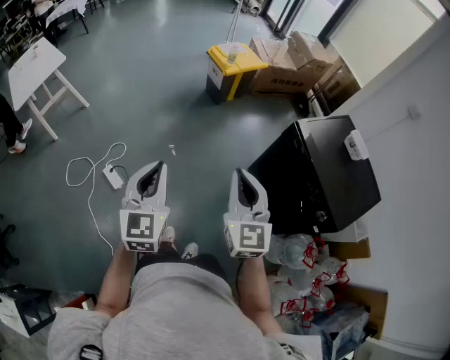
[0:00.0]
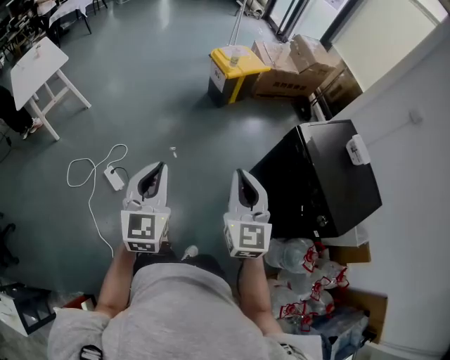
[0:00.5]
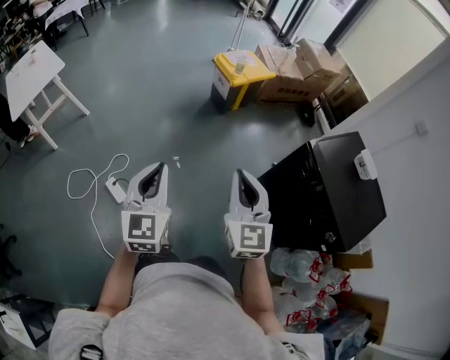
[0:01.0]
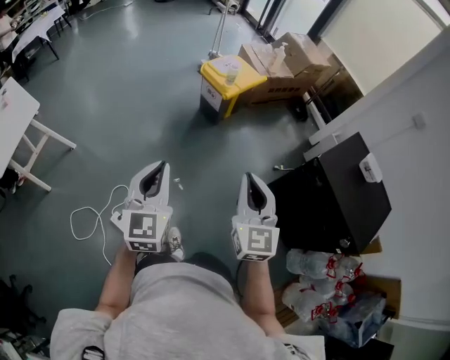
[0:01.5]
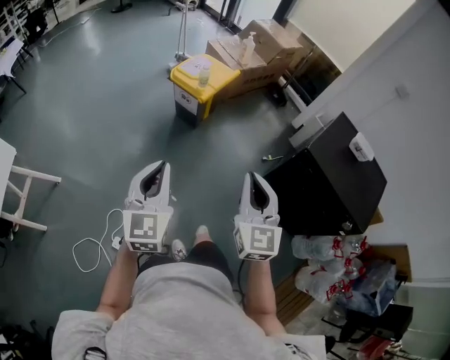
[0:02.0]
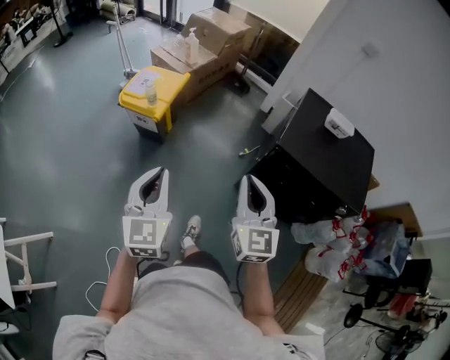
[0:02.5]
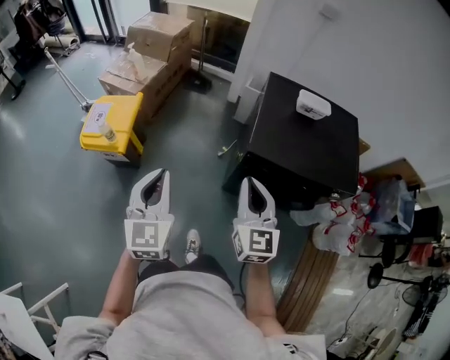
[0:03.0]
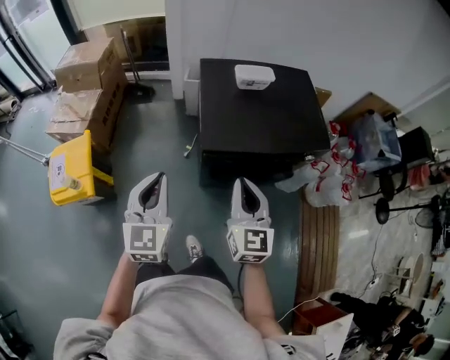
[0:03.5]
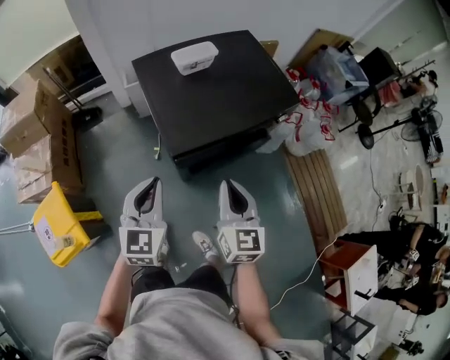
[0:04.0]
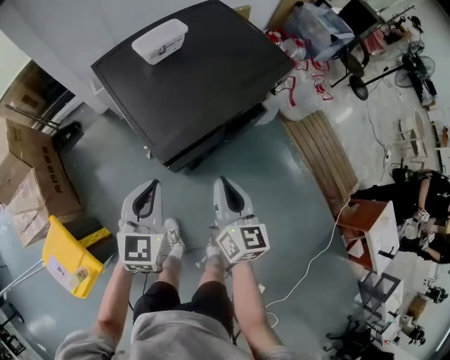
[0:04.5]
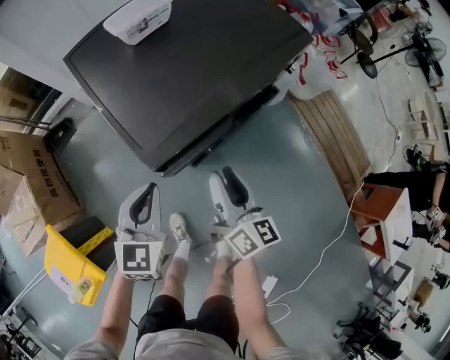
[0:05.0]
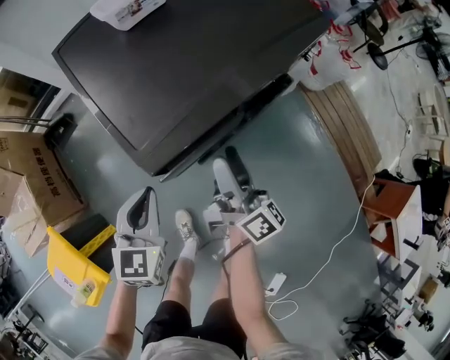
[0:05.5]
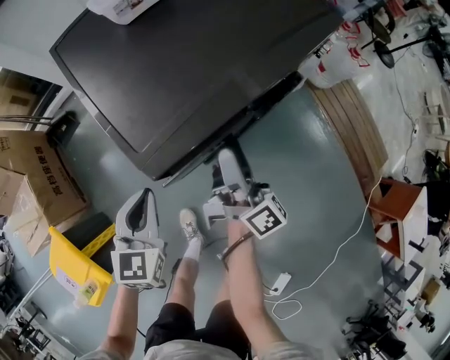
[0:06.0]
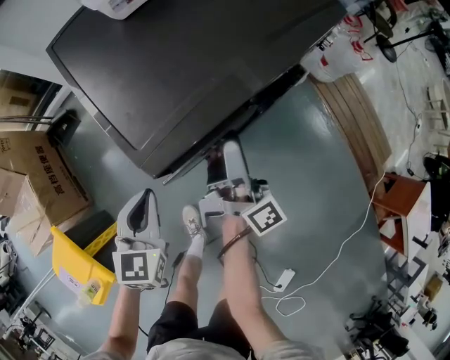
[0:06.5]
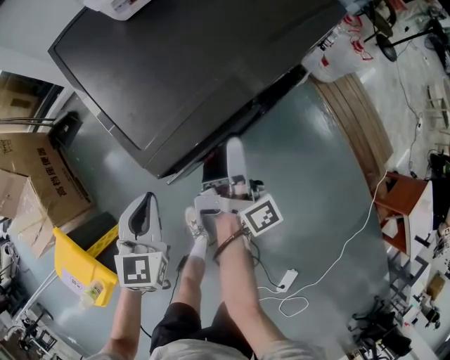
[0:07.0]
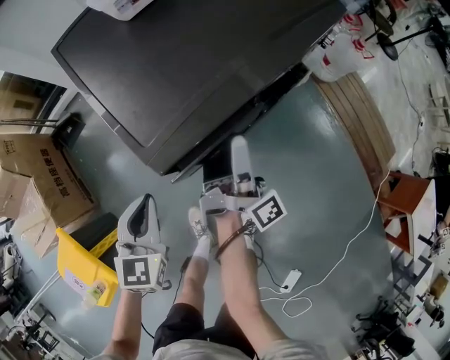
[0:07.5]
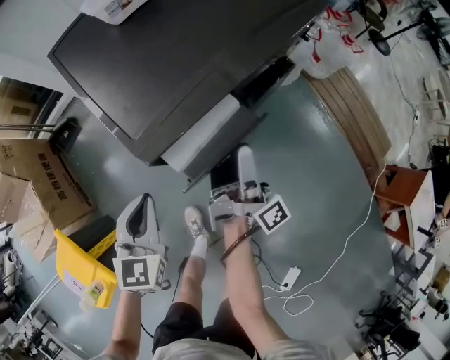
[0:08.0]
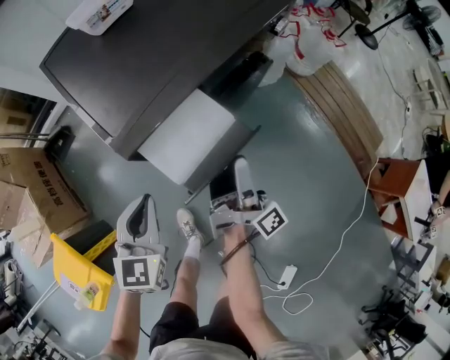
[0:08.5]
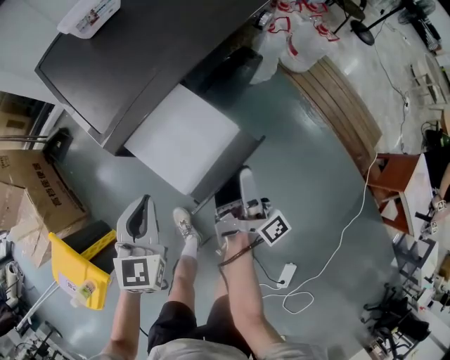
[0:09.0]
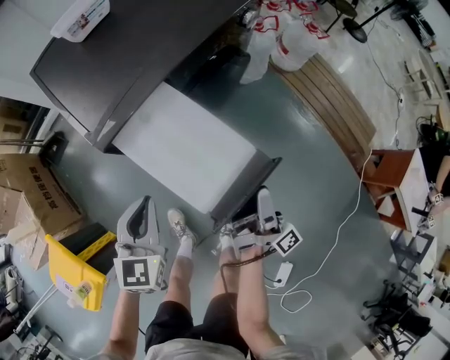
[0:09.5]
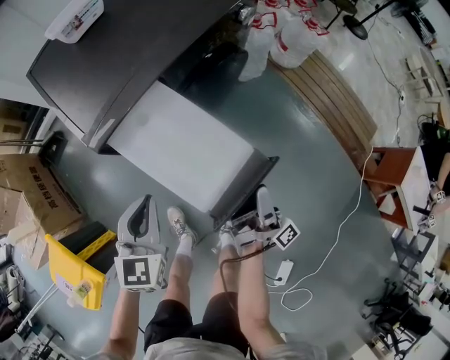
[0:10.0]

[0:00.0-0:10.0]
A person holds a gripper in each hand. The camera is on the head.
0:00.0 to 0:02.0: The right gripper goes roughly 30 cm forward and to the left, and turns by roughly 30 degrees, while the left gripper heads forward, covering some 40 cm, and turns by roughly 20 degrees.
0:02.0 to 0:04.0: The left gripper shifts by roughly 60 cm, and rotates approximately 80 degrees, while the right gripper ends up about 40 cm from where it was, and swivels approximately 70 degrees.
0:04.0 to 0:06.0: The left gripper moves downward, some 25 cm. The right gripper goes roughly 25 cm downward and forward, rolls clockwise, seen from behind, by about 60 degrees, and opens.
0:06.0 to 0:08.0: The right gripper turns by roughly 20 degrees.
0:08.0 to 0:10.0: The left gripper is displaced to the right by some 15 cm, while the right gripper travels to the right and backward by some 20 cm.

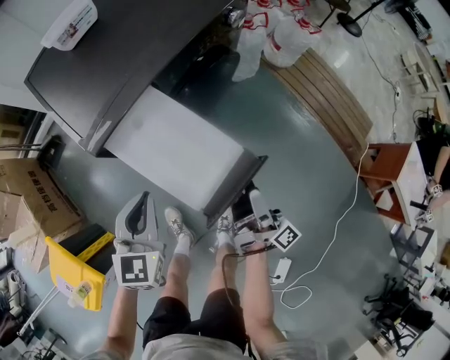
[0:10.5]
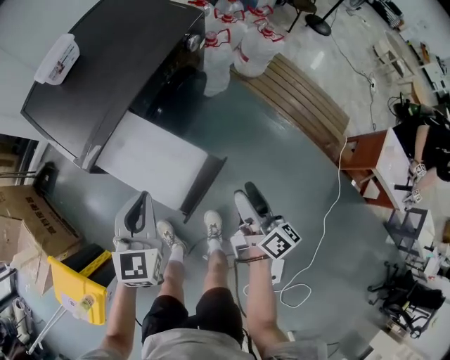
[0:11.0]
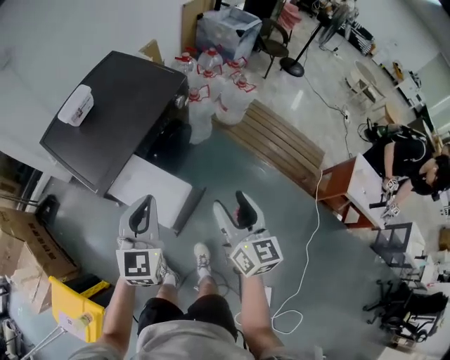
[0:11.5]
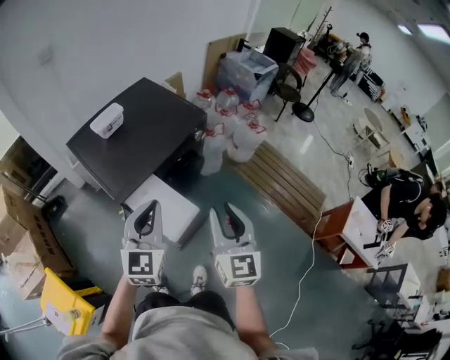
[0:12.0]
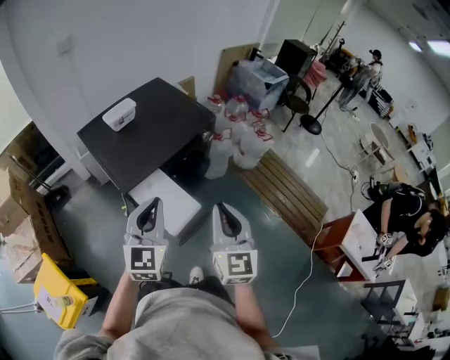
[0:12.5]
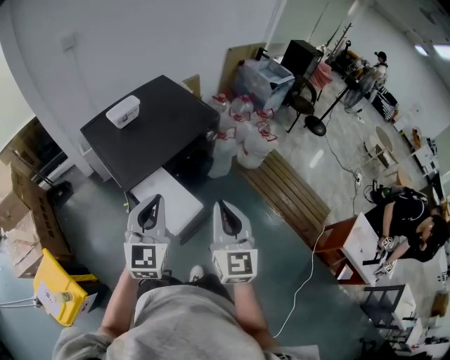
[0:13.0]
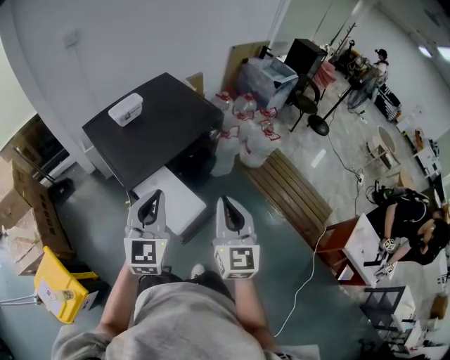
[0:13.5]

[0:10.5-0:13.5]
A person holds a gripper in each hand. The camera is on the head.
0:10.5 to 0:12.0: Both grippers travel together upward, some 30 cm. The right gripper twists roughly 80 degrees counterclockwise, seen from behind, and closes up. Meanwhile the left gripper swivels some 20 degrees.
0:12.0 to 0:13.5: The right gripper closes its fingers.

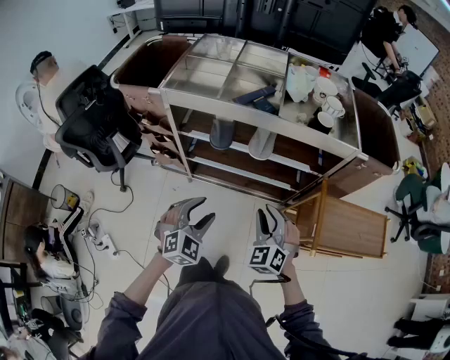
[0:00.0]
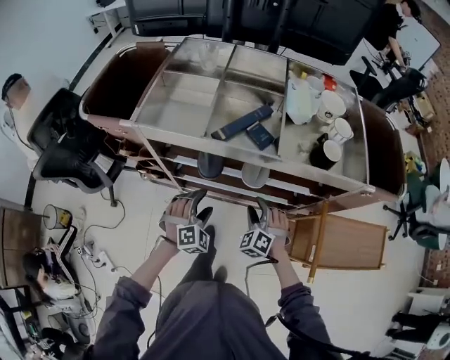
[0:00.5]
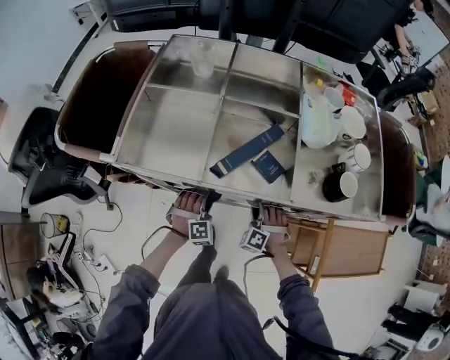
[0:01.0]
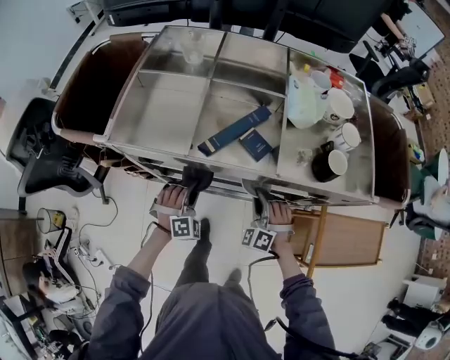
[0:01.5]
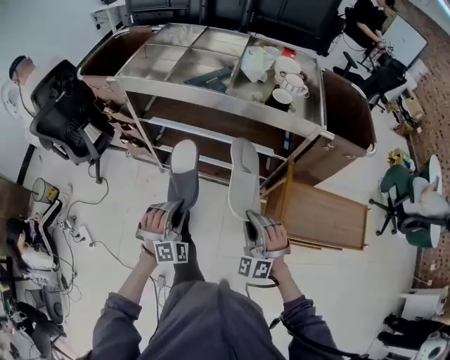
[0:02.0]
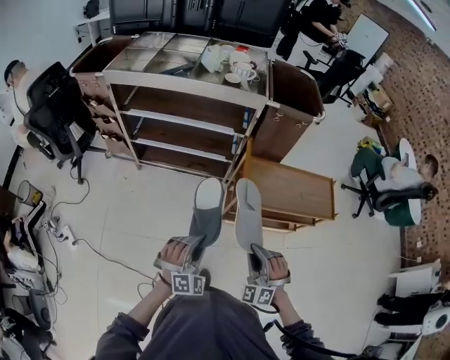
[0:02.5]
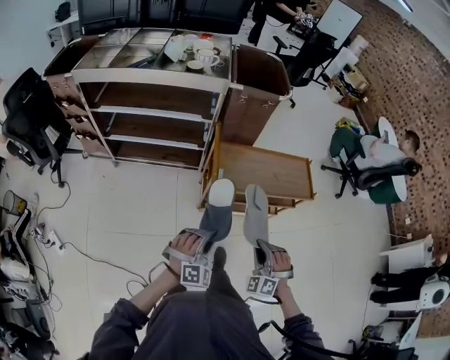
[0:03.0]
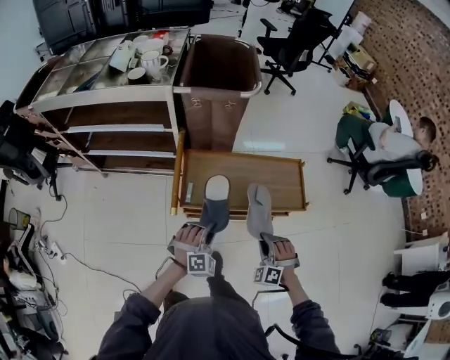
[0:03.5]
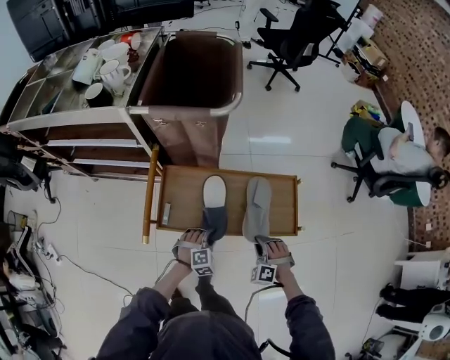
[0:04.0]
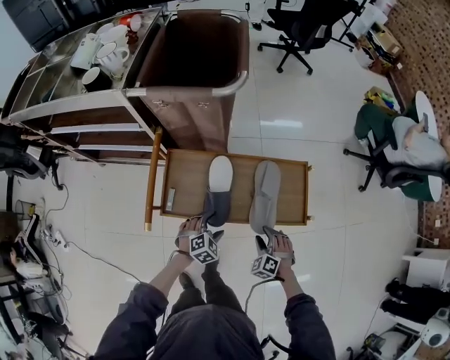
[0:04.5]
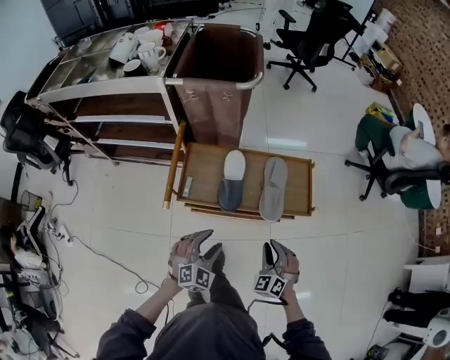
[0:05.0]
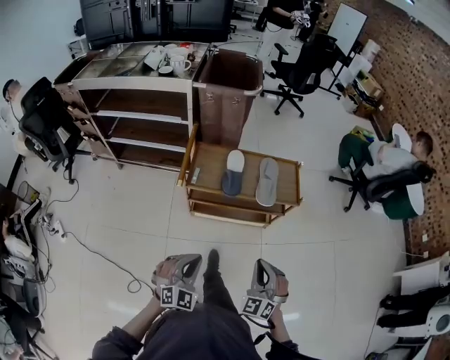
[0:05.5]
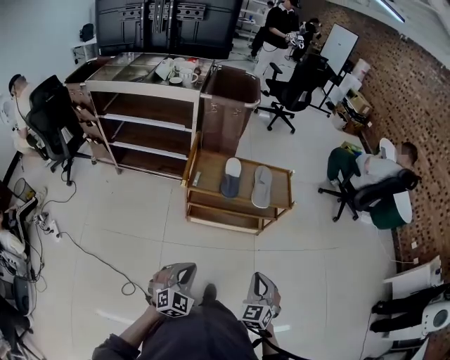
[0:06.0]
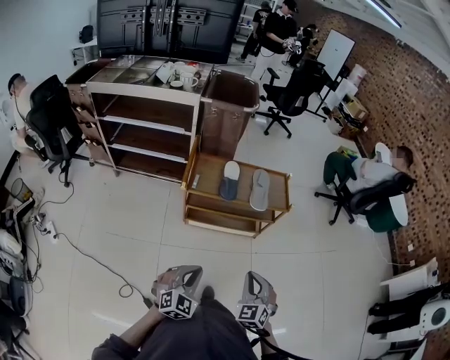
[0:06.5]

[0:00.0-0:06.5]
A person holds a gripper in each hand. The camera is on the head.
0:00.0 to 0:02.0: The left gripper shifts roughly 10 cm to the right and downward, moves roughly 30 cm forward and comes back, rotates some 30 degrees, and closes its fingers, while the right gripper is displaced to the right by about 15 cm, goes forward and returns, about 30 cm each way, rotates approximately 30 degrees, and opens, then closes once more.
0:02.0 to 0:04.5: The two grippers travel together, approximately 60 cm. The left gripper rotates about 50 degrees, and opens. The right gripper angles its fingers downward, by some 40 degrees, and opens.
0:04.5 to 0:06.5: Both grippers are carried backward, about 40 cm. The grippers both shift upward by roughly 25 cm. The left gripper turns by about 30 degrees, and closes; the right gripper swivels some 40 degrees, and closes its fingers.

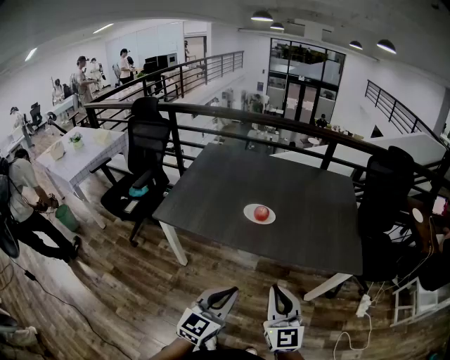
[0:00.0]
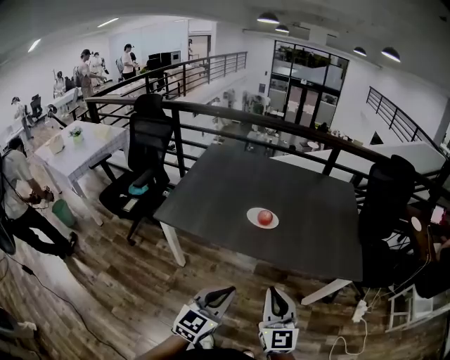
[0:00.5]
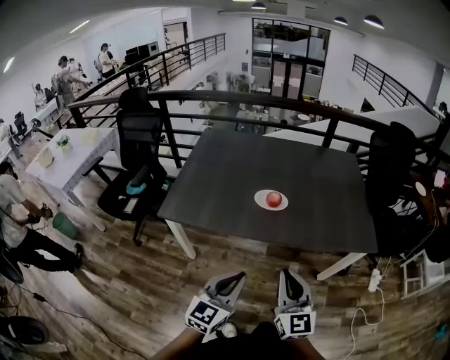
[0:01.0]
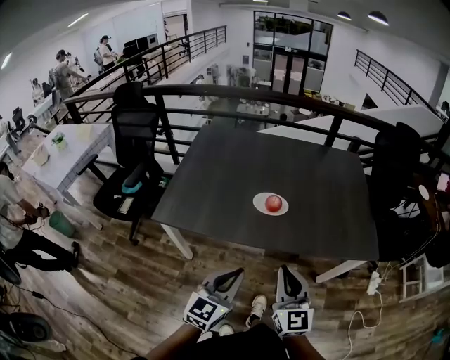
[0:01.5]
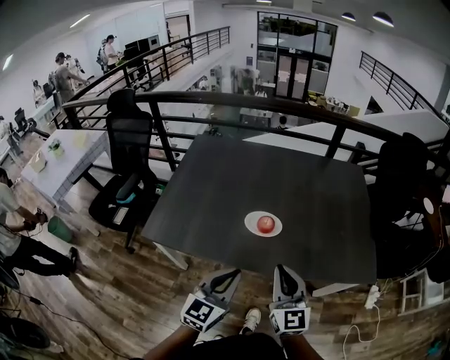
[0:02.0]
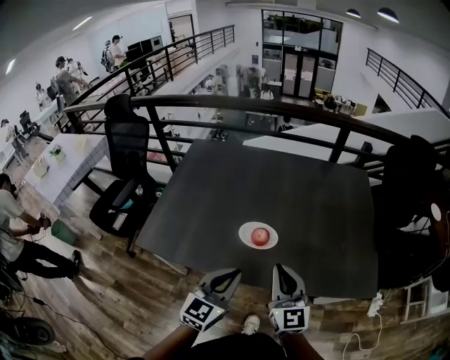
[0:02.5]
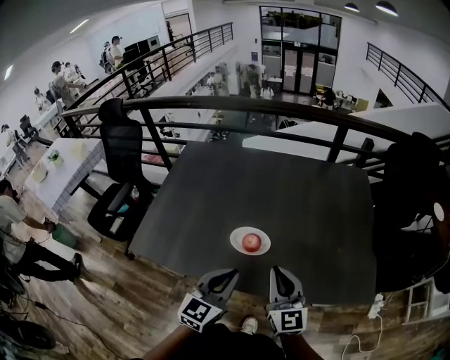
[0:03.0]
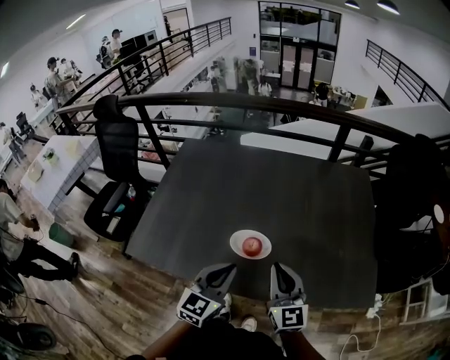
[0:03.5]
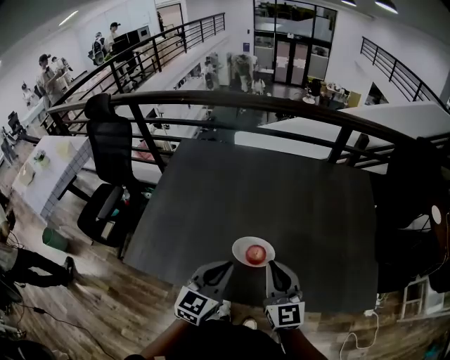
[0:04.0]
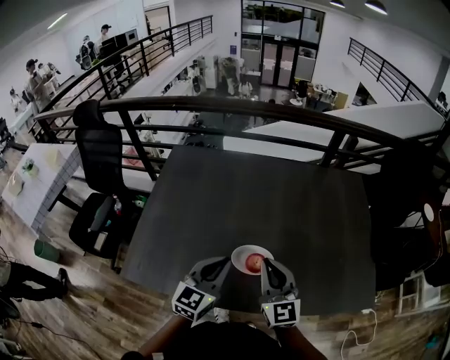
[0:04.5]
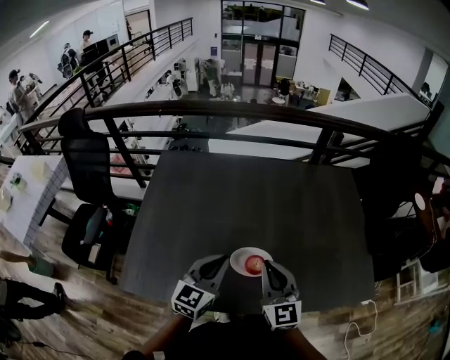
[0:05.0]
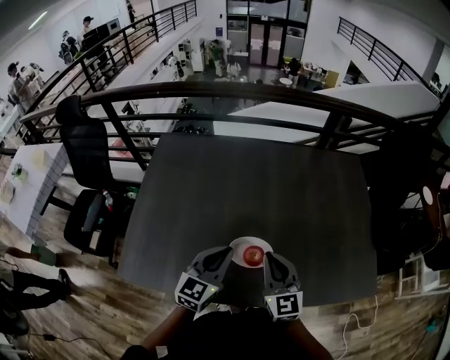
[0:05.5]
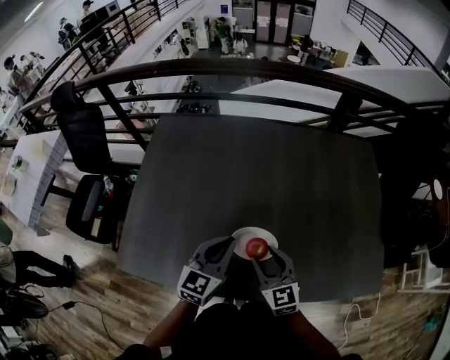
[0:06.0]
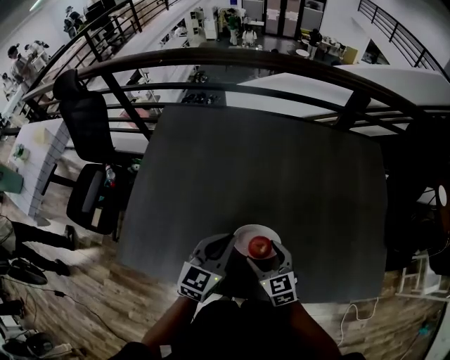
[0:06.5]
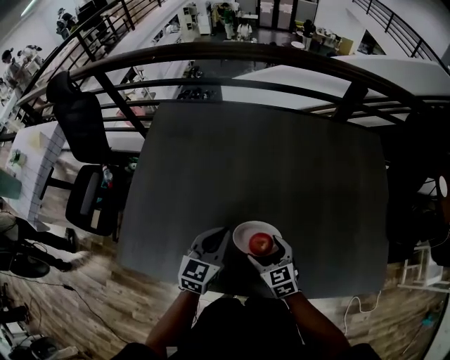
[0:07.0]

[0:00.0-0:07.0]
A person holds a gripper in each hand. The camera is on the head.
0:00.0 to 0:02.0: Both grippers move forward, about 20 cm.
0:02.0 to 0:03.5: Both grippers move forward, approximately 15 cm.
0:03.5 to 0:05.0: The left gripper travels forward and to the left by roughly 15 cm. The right gripper heads to the left and forward, covering about 10 cm.
0:05.0 to 0:07.0: The right gripper moves downward, about 25 cm, tips its fingers downward by approximately 40 degrees, and opens. The left gripper travels downward and forward by roughly 10 cm.
